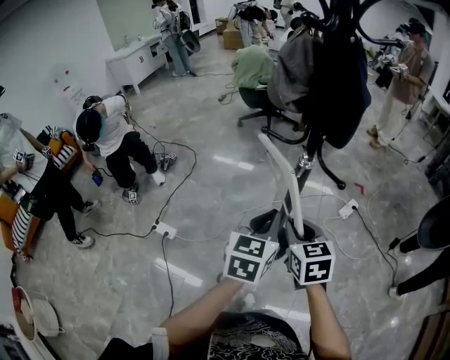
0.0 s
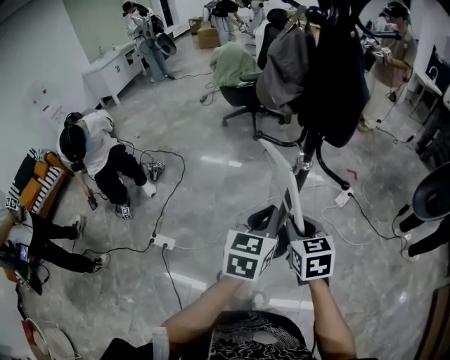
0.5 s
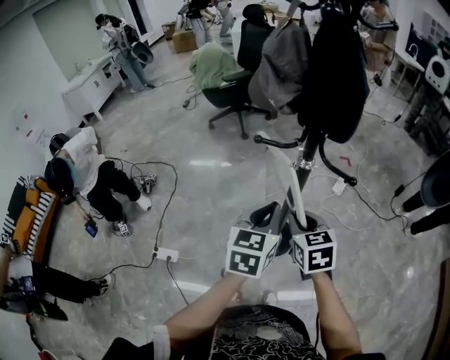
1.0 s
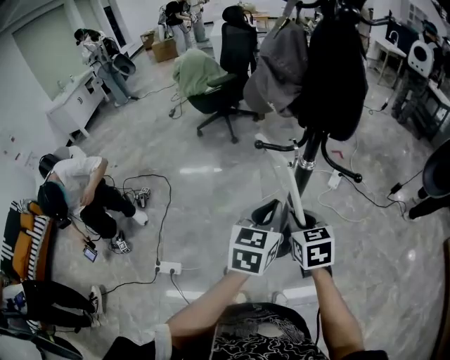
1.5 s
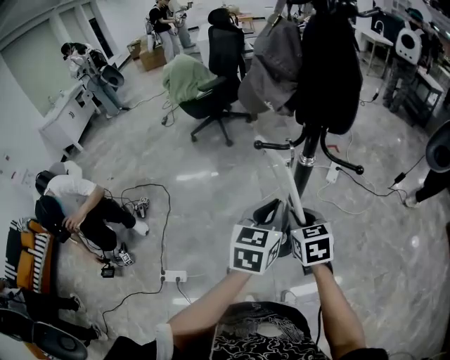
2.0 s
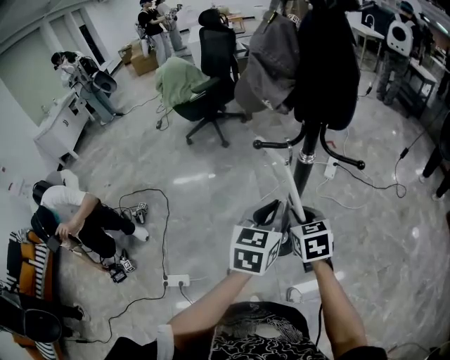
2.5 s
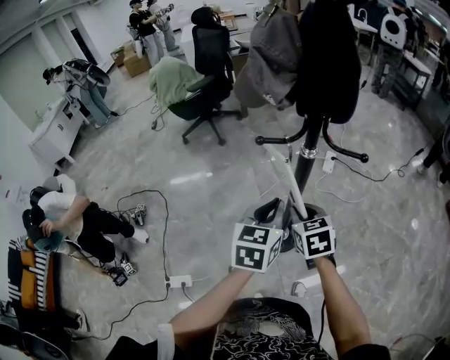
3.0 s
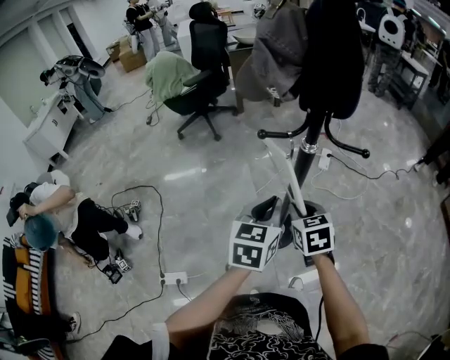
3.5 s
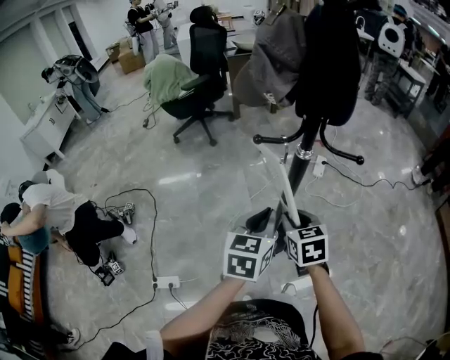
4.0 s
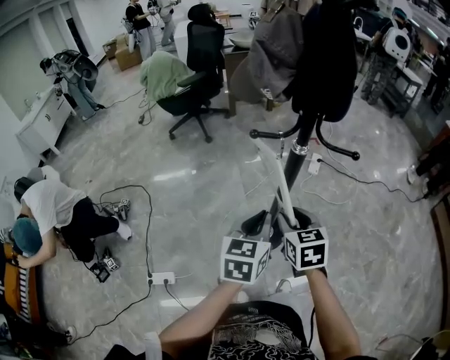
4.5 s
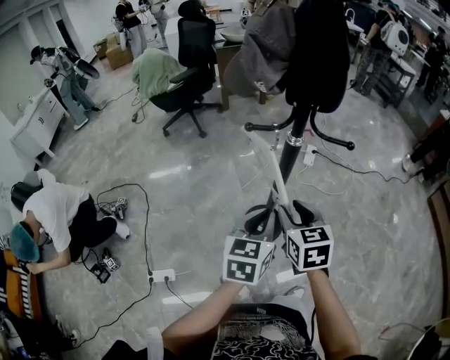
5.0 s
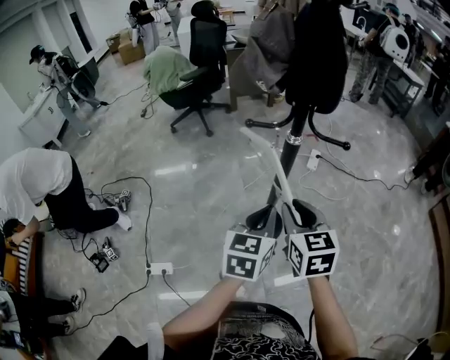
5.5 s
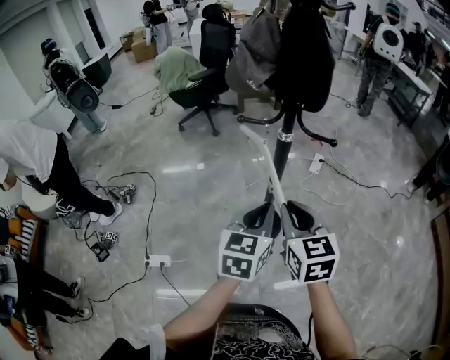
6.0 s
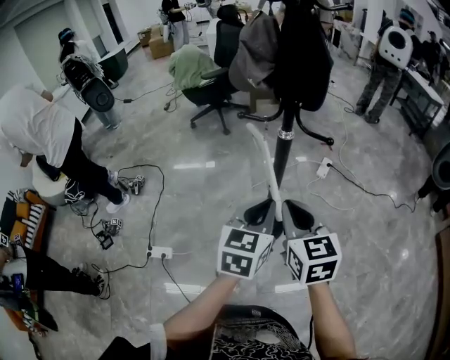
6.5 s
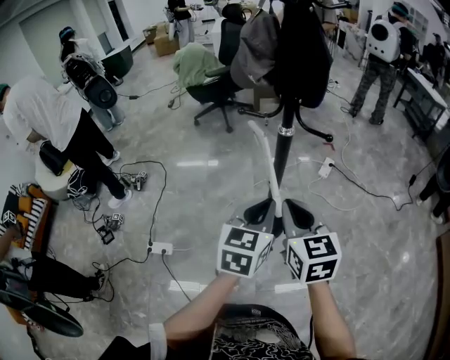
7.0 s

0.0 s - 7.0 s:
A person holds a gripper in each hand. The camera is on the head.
0.0 s - 2.0 s: The right gripper goes approximately 10 cm forward, to the left and downward, and swivels some 20 degrees; the left gripper moves forward and to the left, about 10 cm, and swivels about 20 degrees.
2.0 s - 3.5 s: There are only small adjustments of the grippers.
3.5 s - 5.0 s: The left gripper shifts some 5 cm backward. Meanwhile the right gripper ends up approximately 5 cm from where it was, and opens.
5.0 s - 7.0 s: The right gripper is displaced upward, backward and to the right by approximately 15 cm, and closes. Meanwhile the left gripper heads to the right, backward and upward, covering about 10 cm.

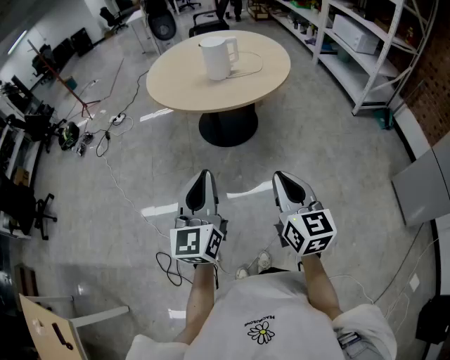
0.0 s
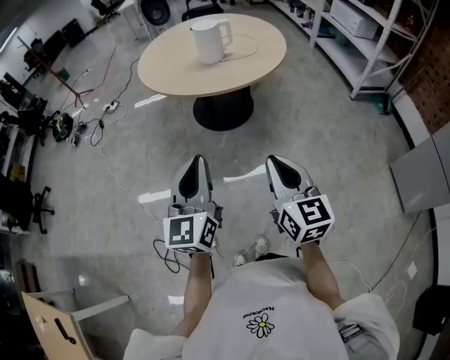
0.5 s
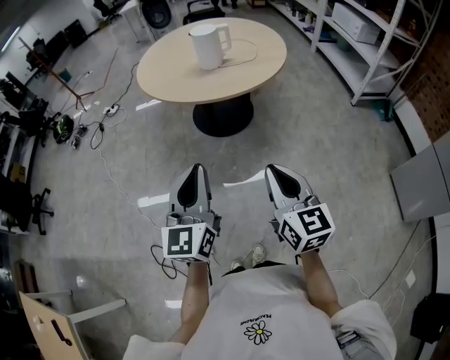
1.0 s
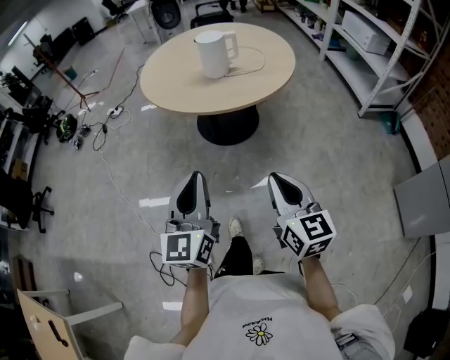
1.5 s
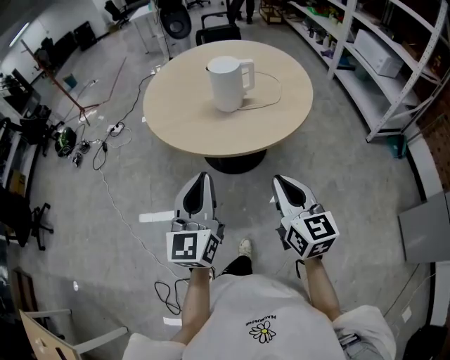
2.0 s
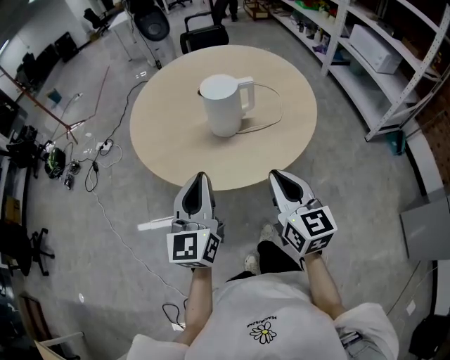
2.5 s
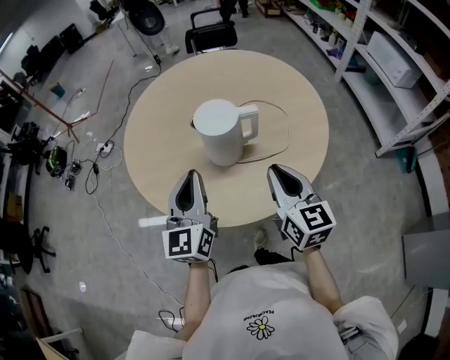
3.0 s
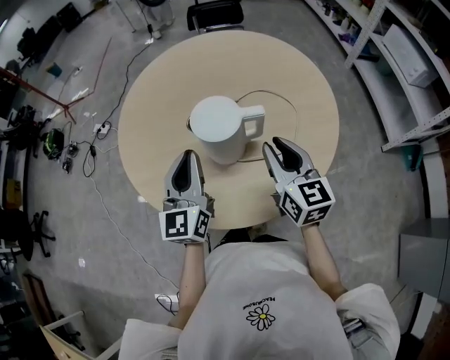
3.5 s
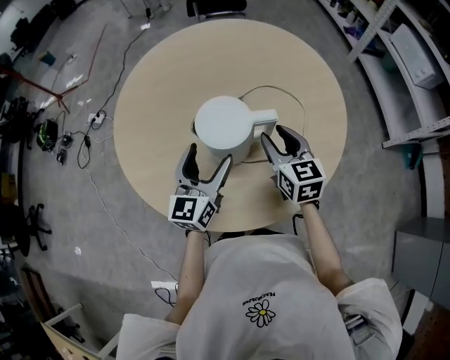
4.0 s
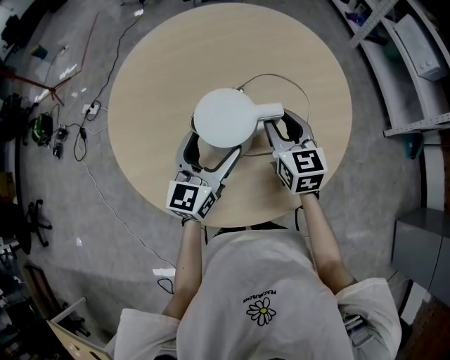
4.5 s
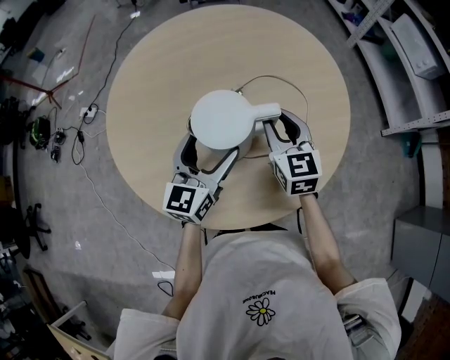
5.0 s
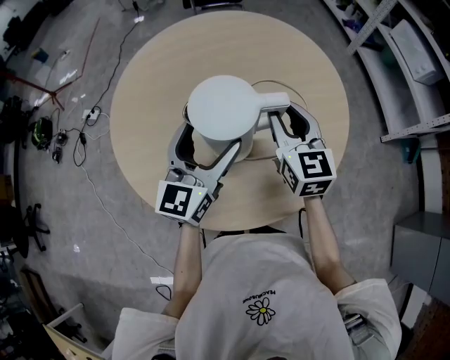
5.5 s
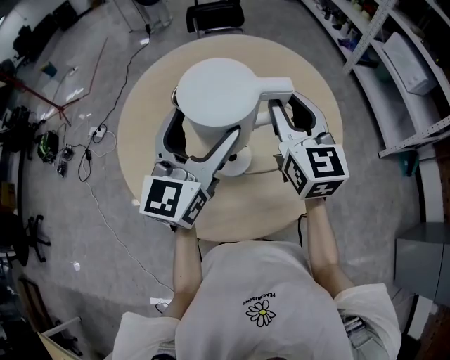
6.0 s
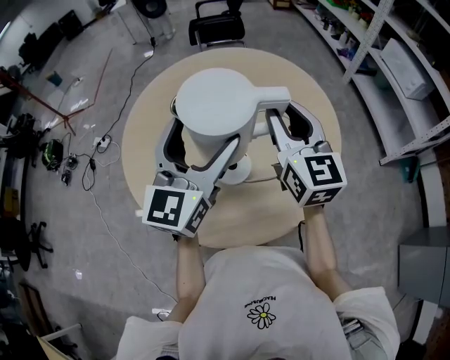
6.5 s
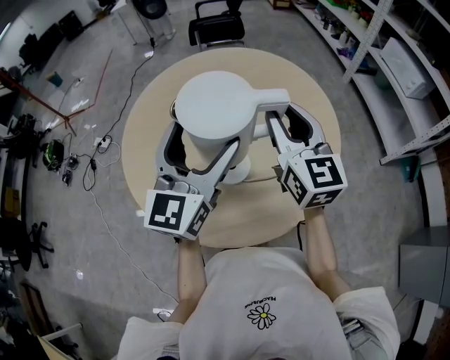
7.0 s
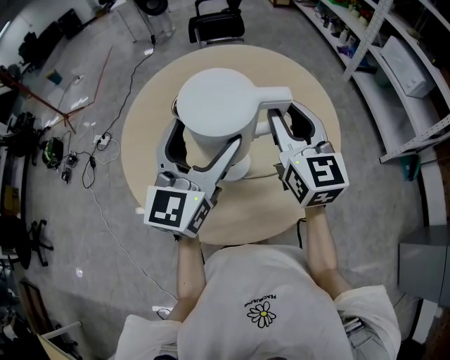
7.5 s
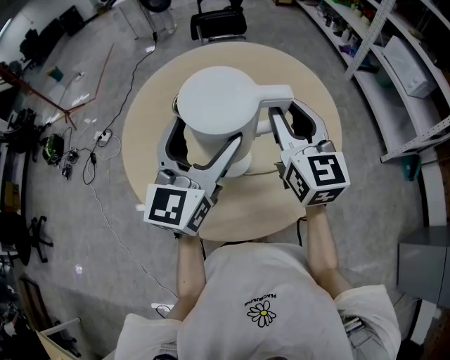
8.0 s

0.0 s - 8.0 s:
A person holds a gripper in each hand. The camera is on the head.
0.0 s - 2.0 s: The grippers both shift forward by about 30 cm.
2.0 s - 4.0 s: The two grippers travel together, forward, about 50 cm. The left gripper opens. The right gripper opens.
4.0 s - 6.0 s: The grippers both shift upward by approximately 20 cm. The right gripper changes its angle by approximately 20 degrees.
6.0 s - 8.0 s: The grippers make only small movements.

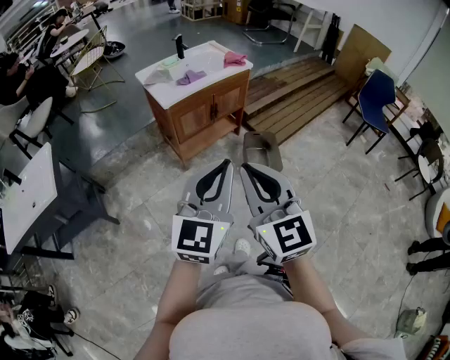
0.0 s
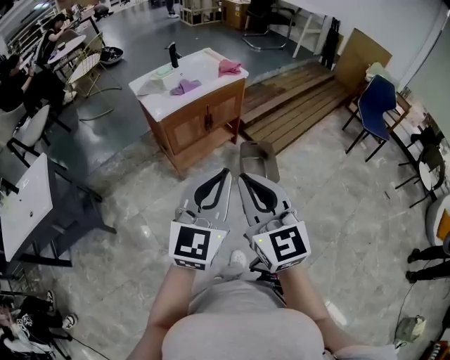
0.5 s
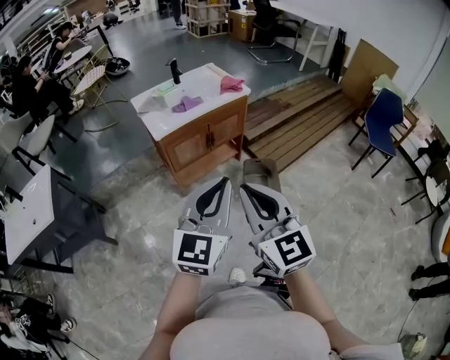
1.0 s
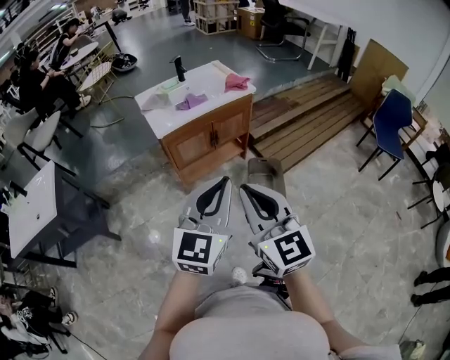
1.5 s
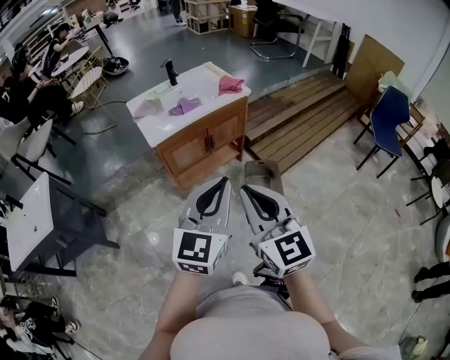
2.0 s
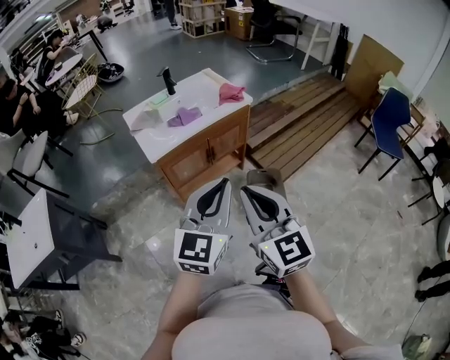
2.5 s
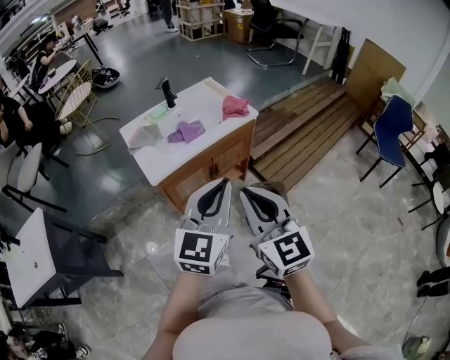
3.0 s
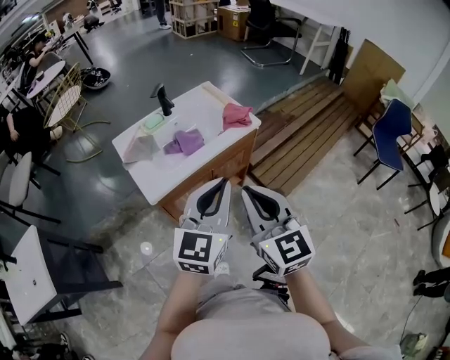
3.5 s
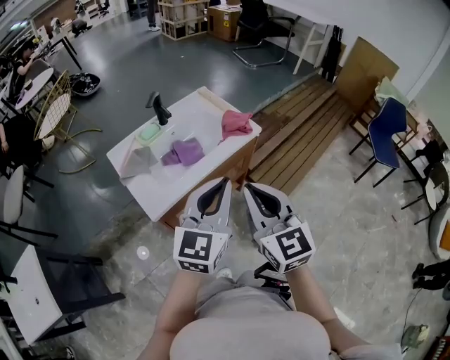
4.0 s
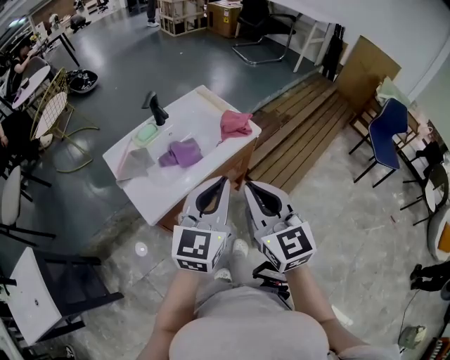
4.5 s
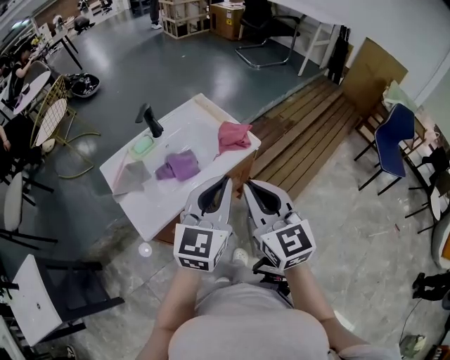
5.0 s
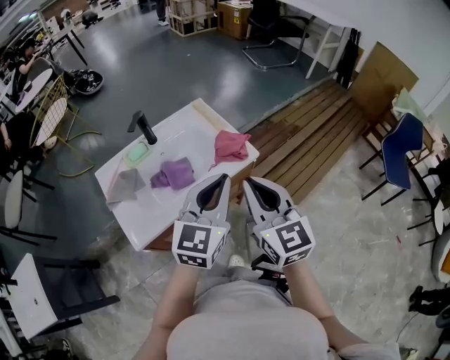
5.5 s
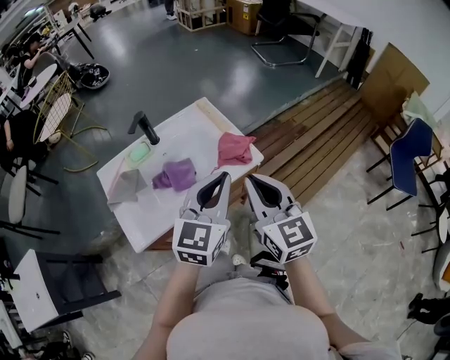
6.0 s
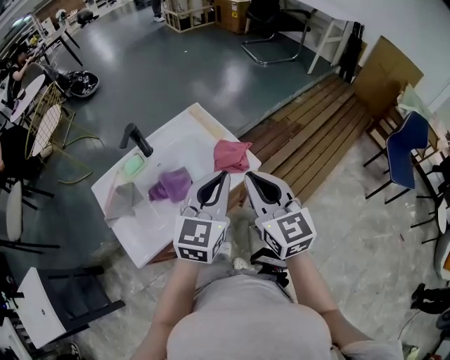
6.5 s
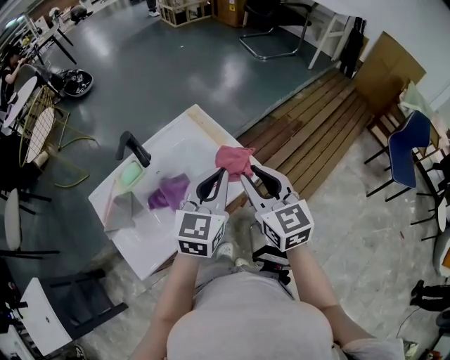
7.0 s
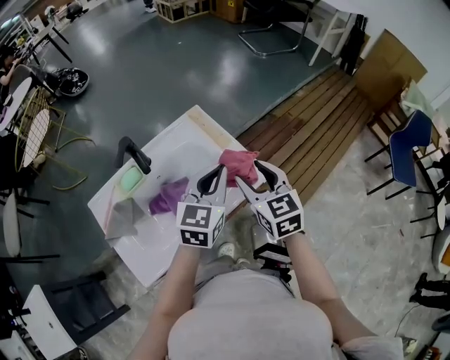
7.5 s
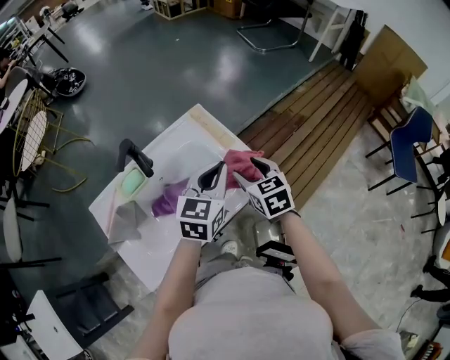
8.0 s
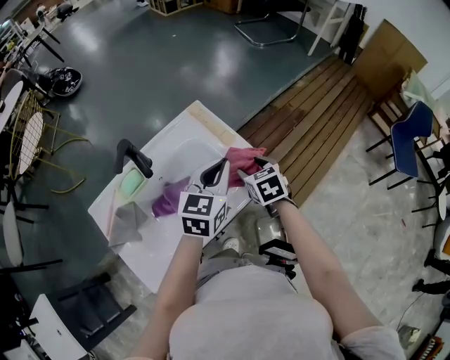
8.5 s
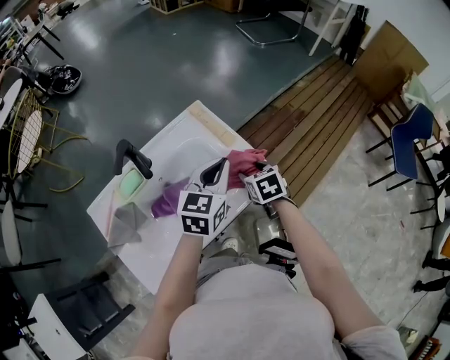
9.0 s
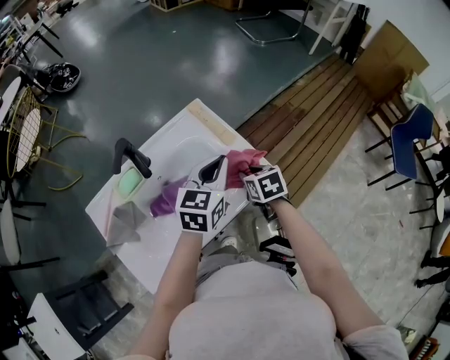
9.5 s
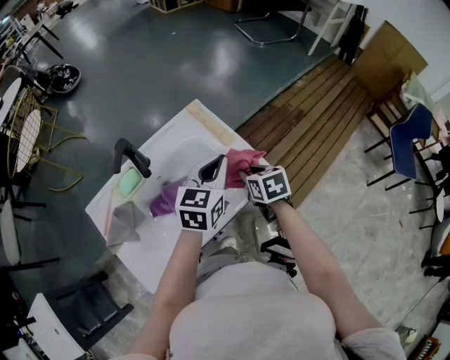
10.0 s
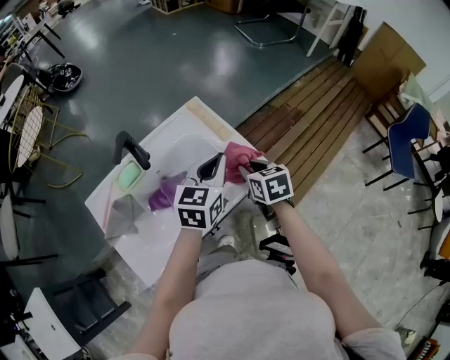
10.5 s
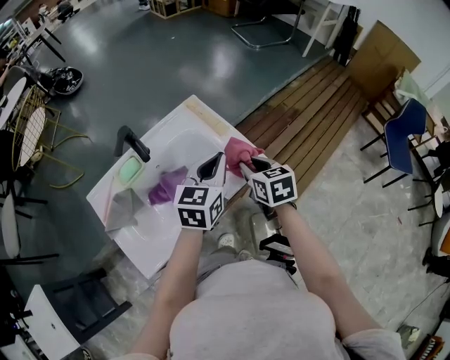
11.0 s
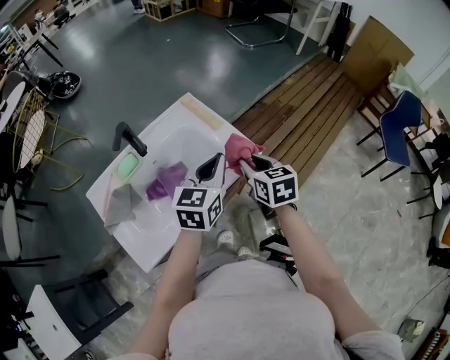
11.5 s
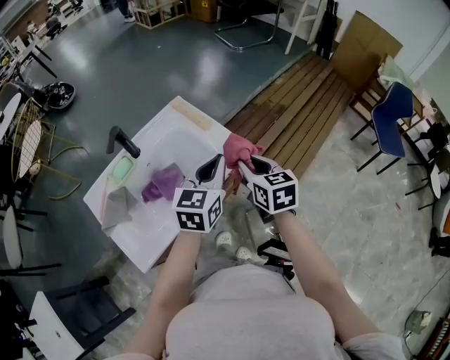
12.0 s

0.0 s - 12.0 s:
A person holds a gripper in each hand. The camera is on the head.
0.0 s - 2.0 s: Both grippers move forward and to the right, roughly 20 cm.
2.0 s - 4.0 s: The grippers both shift forward by some 30 cm.
4.0 s - 6.0 s: The right gripper shifts approximately 20 cm forward and to the right, while the left gripper travels forward by some 20 cm.
6.0 s - 8.0 s: The two grippers go about 20 cm forward and downward. The right gripper turns by roughly 30 degrees, and opens.
8.0 s - 10.0 s: The right gripper goes about 5 cm downward, and closes.
10.0 s - 12.0 s: The right gripper moves upward and backward, roughly 15 cm, and swivels some 20 degrees. The left gripper travels backward by approximately 10 cm.
